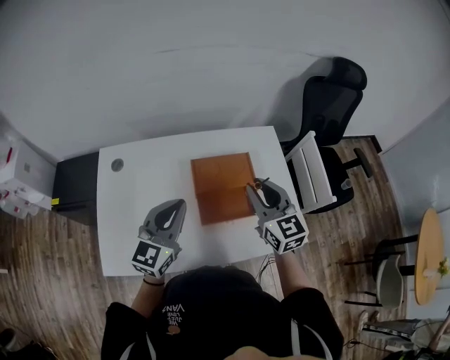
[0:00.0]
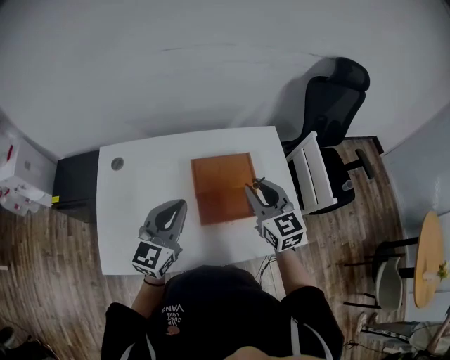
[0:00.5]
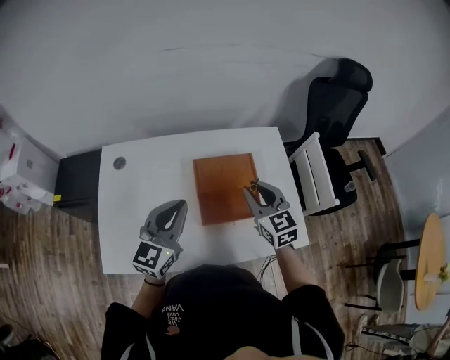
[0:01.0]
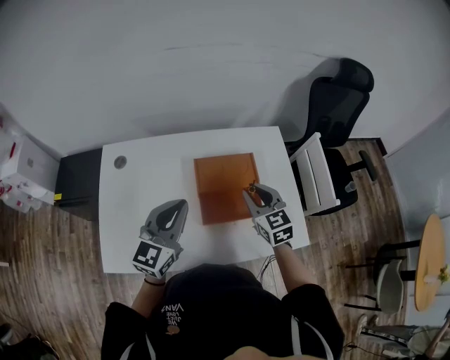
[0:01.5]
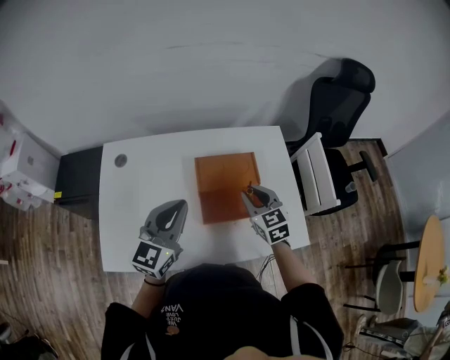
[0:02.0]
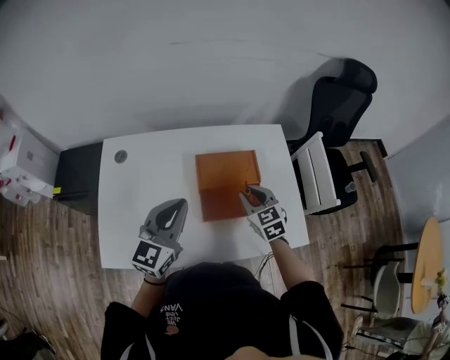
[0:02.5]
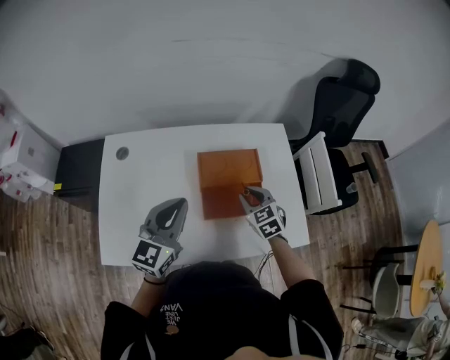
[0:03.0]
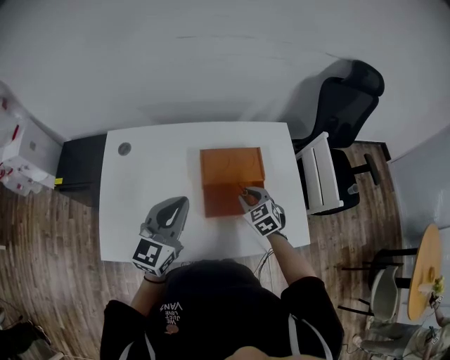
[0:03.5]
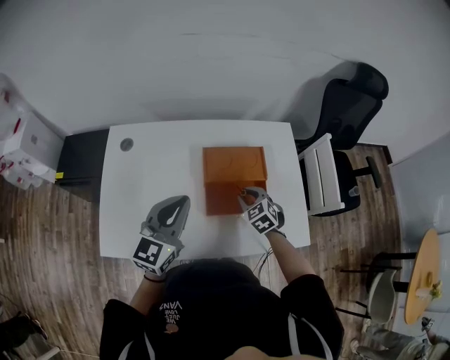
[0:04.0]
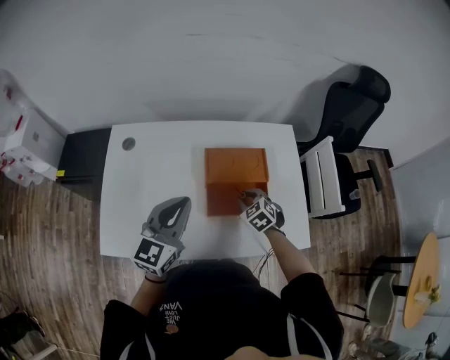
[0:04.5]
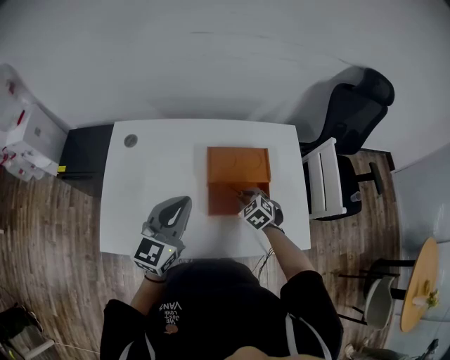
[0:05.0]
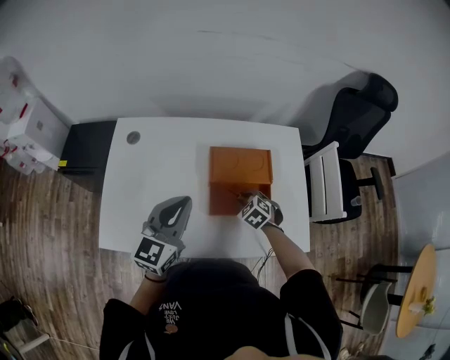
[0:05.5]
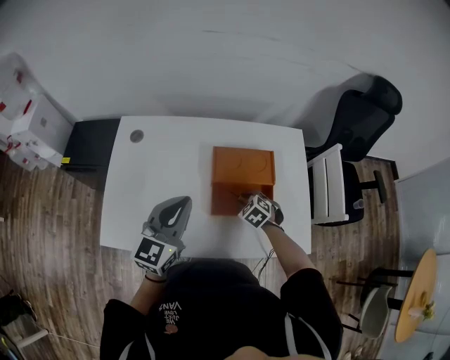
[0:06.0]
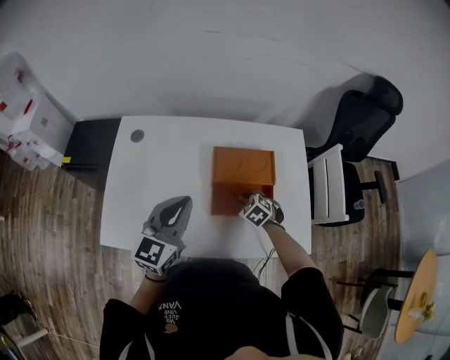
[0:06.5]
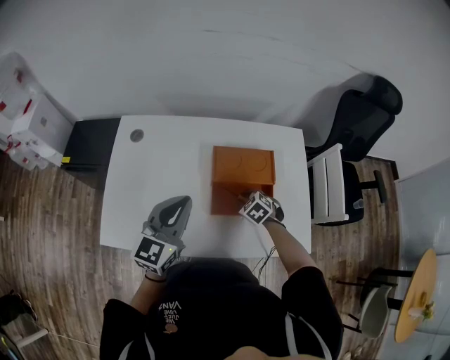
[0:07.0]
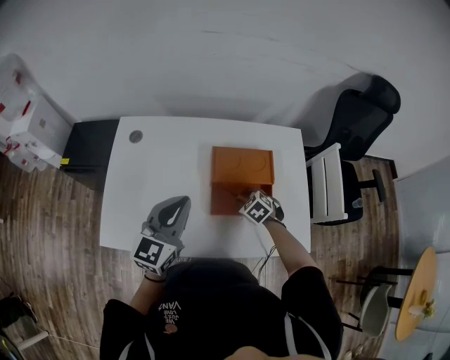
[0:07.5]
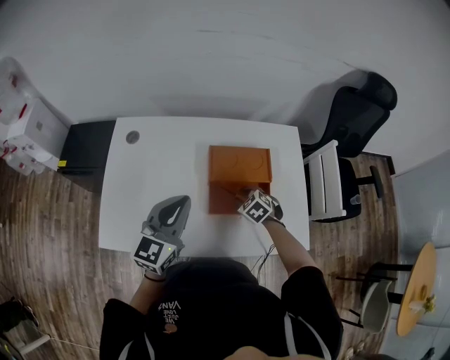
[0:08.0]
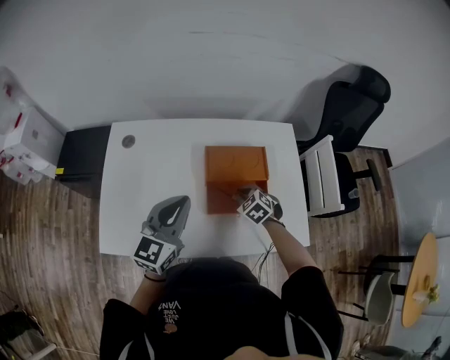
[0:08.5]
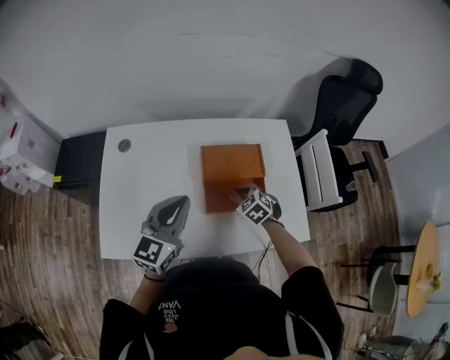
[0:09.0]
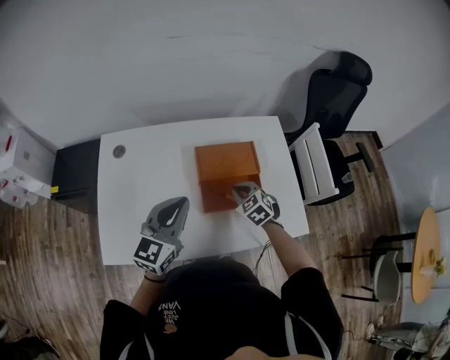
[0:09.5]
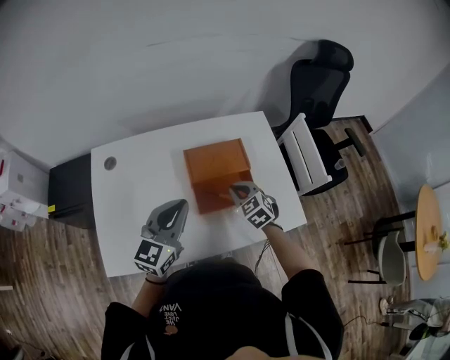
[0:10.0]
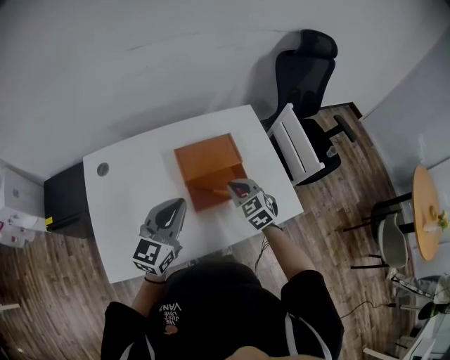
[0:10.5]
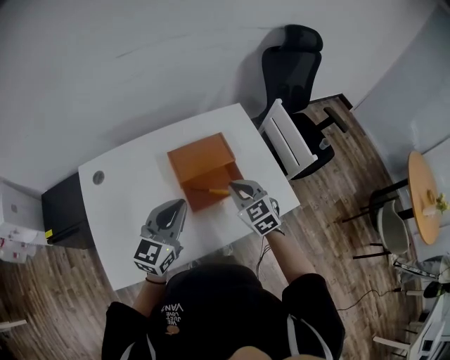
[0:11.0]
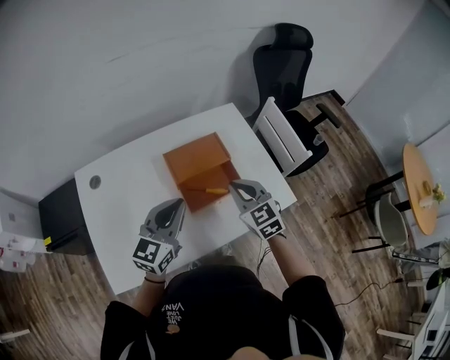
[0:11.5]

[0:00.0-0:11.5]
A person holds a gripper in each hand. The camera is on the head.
0:00.0 to 0:02.0: The right gripper shifts some 10 cm downward.
0:02.0 to 0:04.0: The right gripper shifts roughly 10 cm downward, and changes its angle by about 30 degrees.
0:04.0 to 0:06.0: The right gripper shifts some 5 cm downward.
0:06.0 to 0:07.5: The two grippers keep their place.
0:07.5 to 0:09.5: The right gripper moves upward, about 10 cm, and closes its fingers.
0:09.5 to 0:11.5: The right gripper shifts about 15 cm upward and backward, and rotates about 30 degrees.

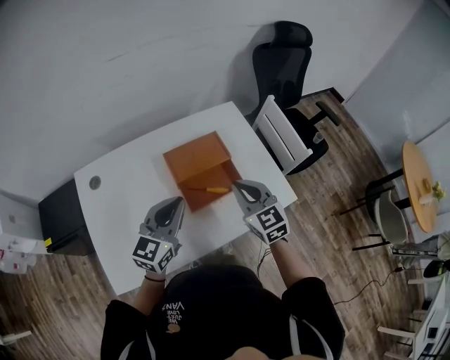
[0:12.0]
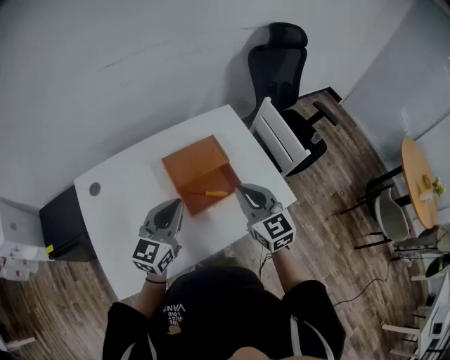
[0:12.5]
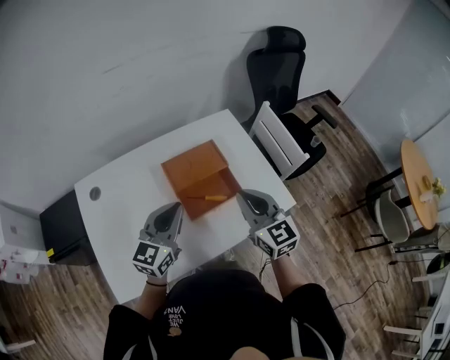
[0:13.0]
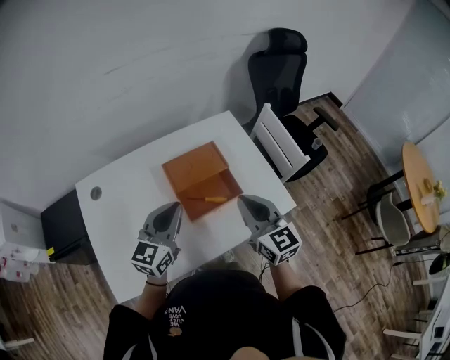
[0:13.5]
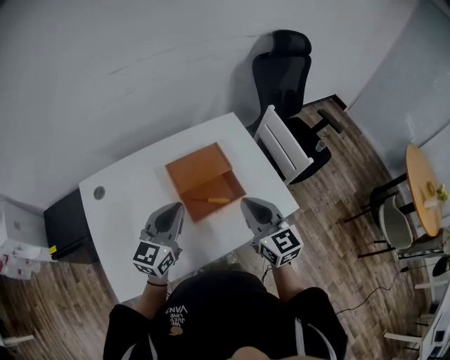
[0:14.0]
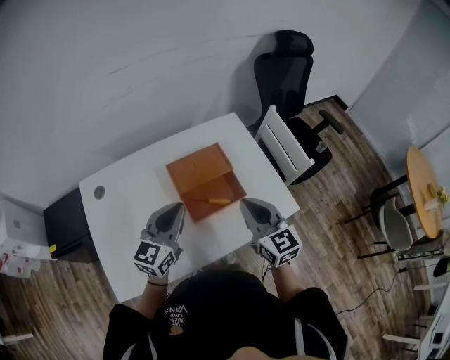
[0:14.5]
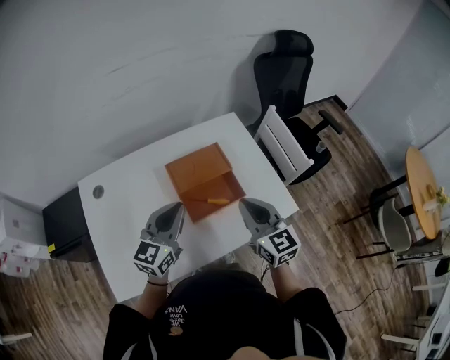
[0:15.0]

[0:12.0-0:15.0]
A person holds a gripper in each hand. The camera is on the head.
0:12.0 to 0:13.5: The right gripper shifts by roughly 5 cm.
0:13.5 to 0:15.0: The grippers stay close to where they were, moving slightly.

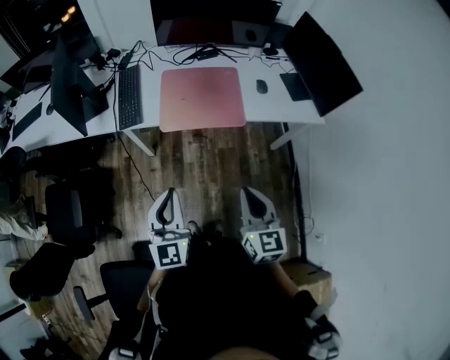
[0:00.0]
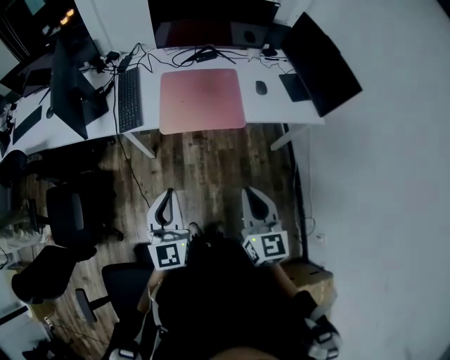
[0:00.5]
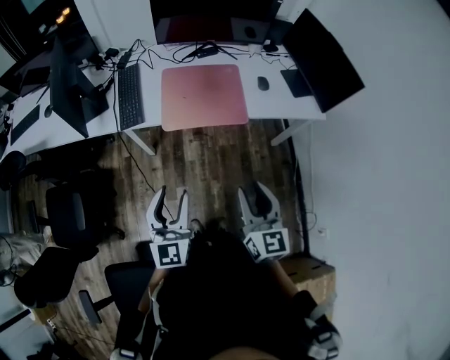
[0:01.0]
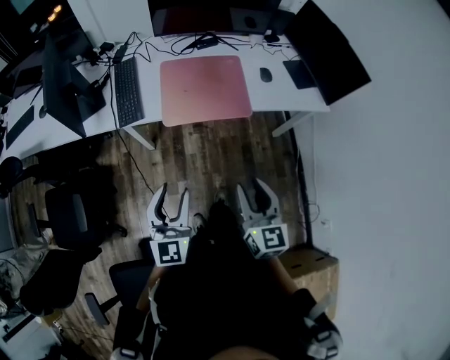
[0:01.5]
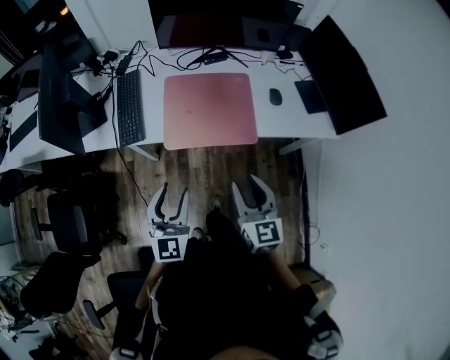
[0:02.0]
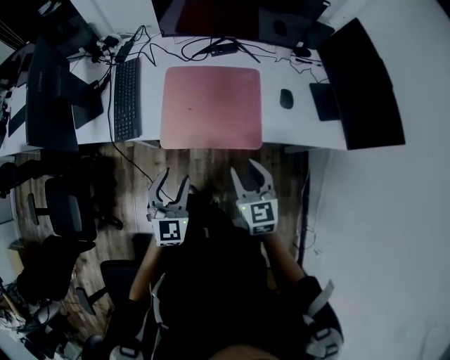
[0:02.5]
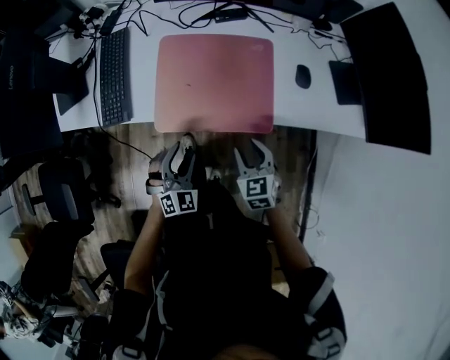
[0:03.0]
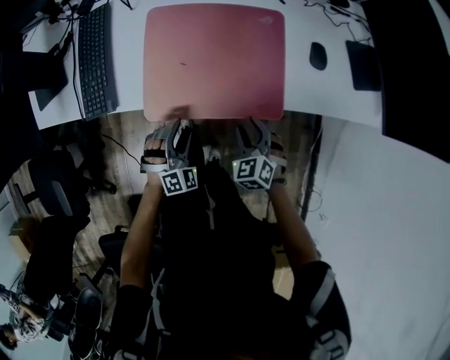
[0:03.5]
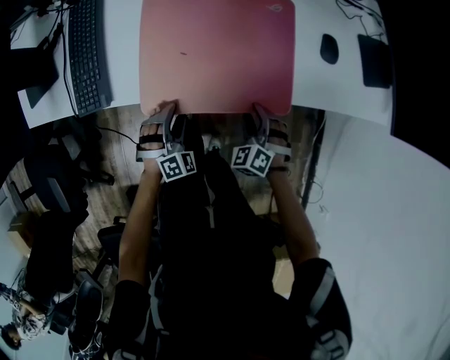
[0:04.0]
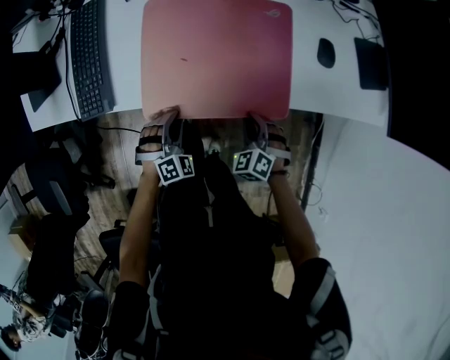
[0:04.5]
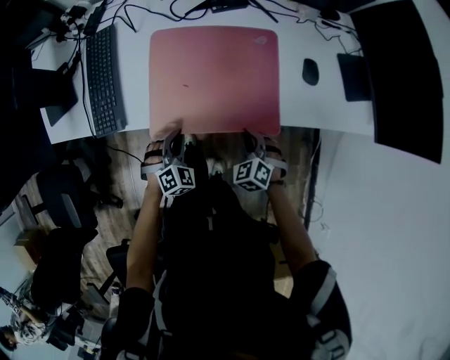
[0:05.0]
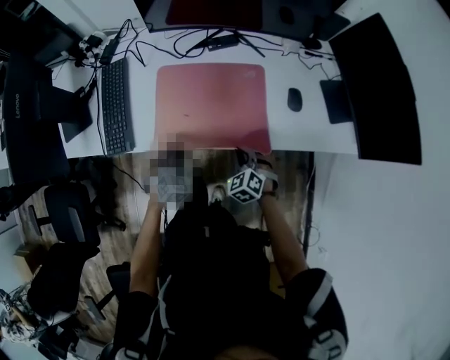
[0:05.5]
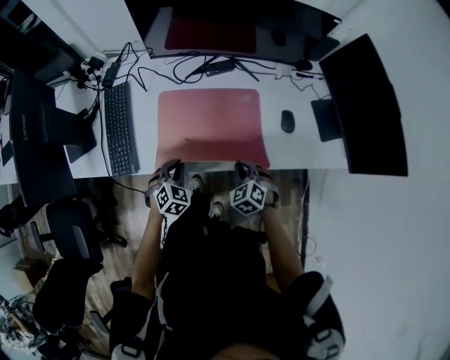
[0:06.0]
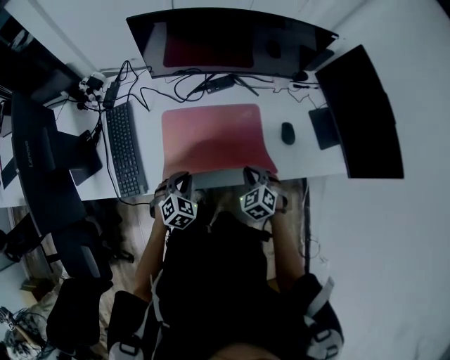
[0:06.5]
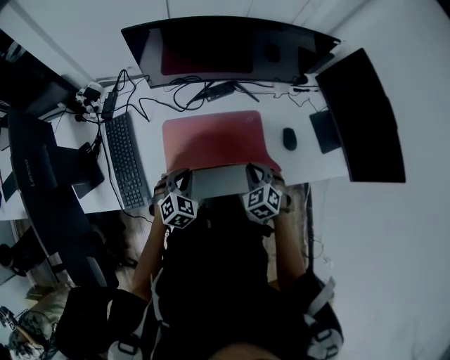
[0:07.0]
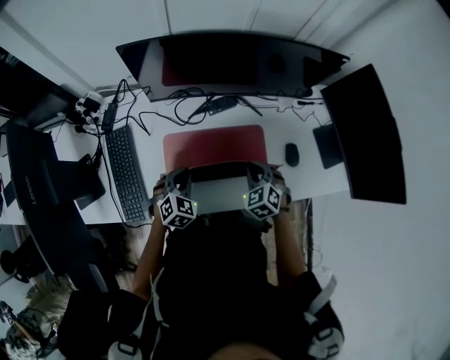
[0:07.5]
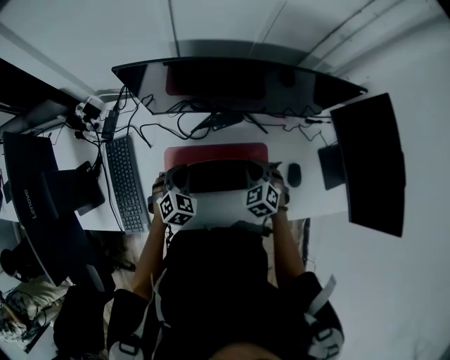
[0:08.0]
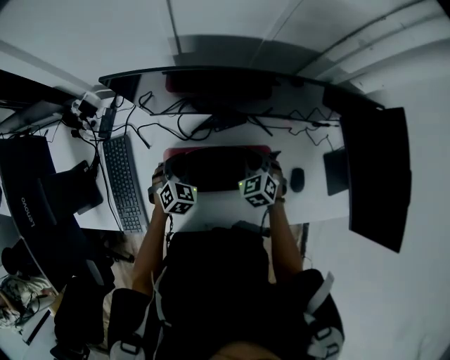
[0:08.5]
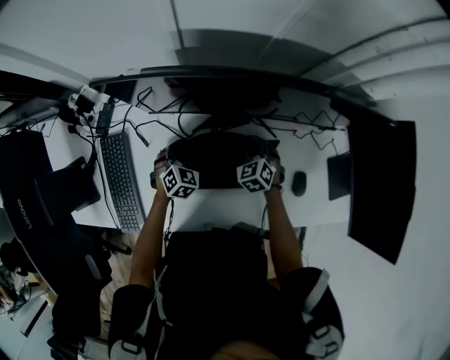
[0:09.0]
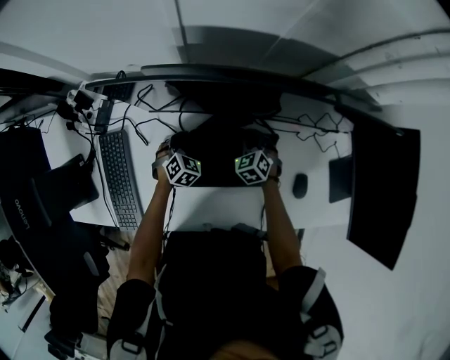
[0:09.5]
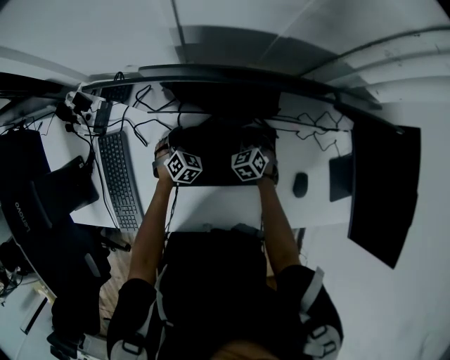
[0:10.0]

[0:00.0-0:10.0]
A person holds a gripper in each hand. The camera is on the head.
0:00.0 to 0:02.0: Both grippers move forward, some 15 cm. The right gripper opens up, while the left gripper opens.
0:02.0 to 0:04.0: The grippers both shift downward and forward by some 40 cm. The right gripper twists about 50 degrees counterclockwise, seen from behind. Meanwhile the left gripper twists about 50 degrees clockwise, seen from behind.
0:04.0 to 0:06.0: The grippers both shift upward and forward by approximately 15 cm. The left gripper changes its angle by some 30 degrees, and closes up, while the right gripper closes.
0:06.0 to 0:08.0: Both grippers travel together forward, roughly 25 cm.
0:08.0 to 0:10.0: Both grippers move forward and downward, approximately 20 cm. The left gripper opens.

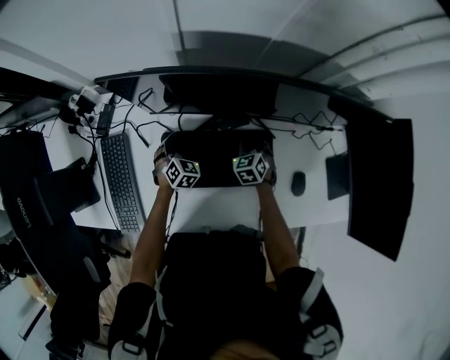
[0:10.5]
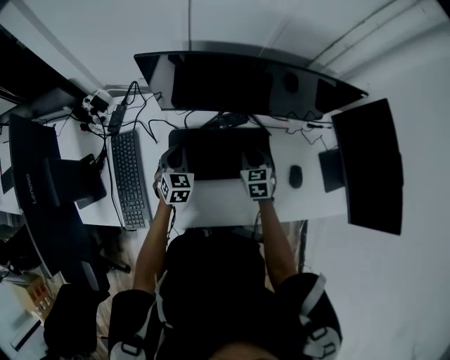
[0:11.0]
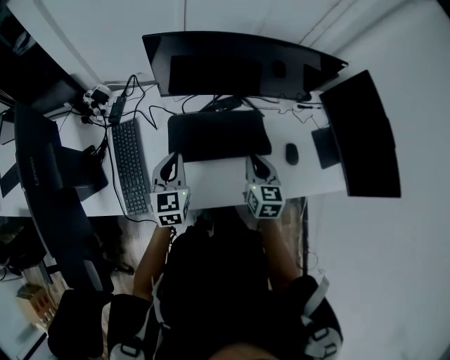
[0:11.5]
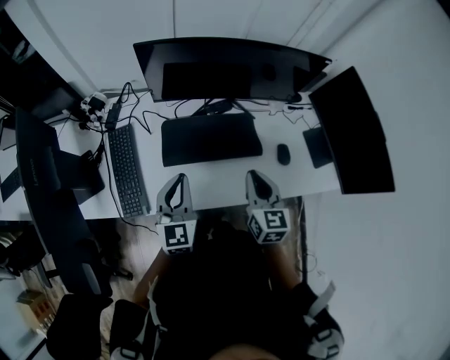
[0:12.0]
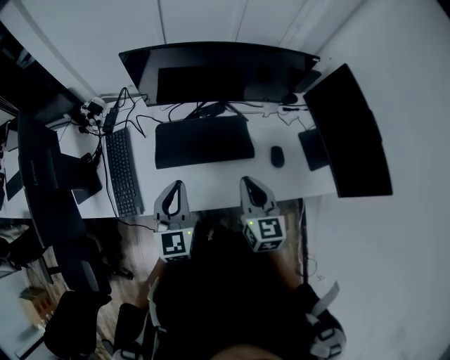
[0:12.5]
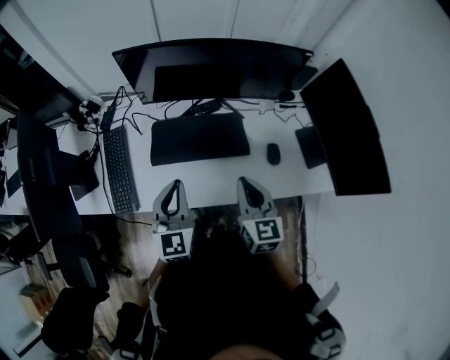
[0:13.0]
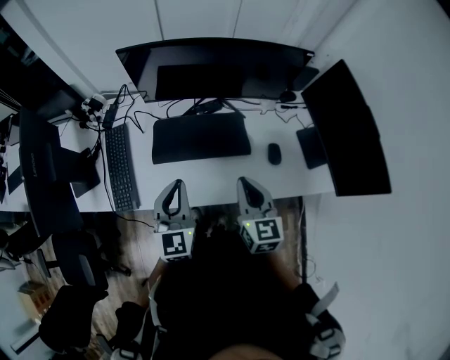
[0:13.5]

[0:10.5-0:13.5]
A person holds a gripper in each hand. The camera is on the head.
0:10.5 to 0:12.0: The right gripper travels backward and upward by about 40 cm, and changes its angle by approximately 40 degrees, while the left gripper moves upward and backward, roughly 40 cm, tips its fingers upward by roughly 40 degrees, and closes its fingers.
0:12.0 to 0:13.5: The left gripper travels to the right by about 5 cm. The right gripper ends up about 5 cm from where it was.
